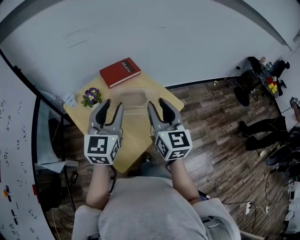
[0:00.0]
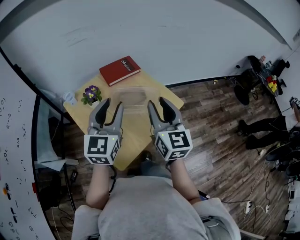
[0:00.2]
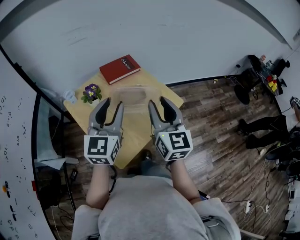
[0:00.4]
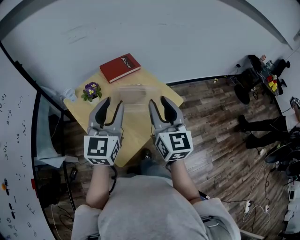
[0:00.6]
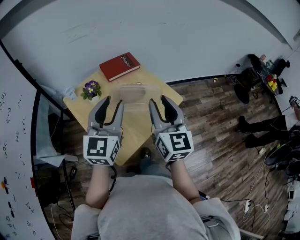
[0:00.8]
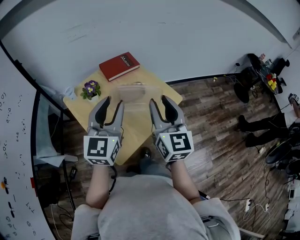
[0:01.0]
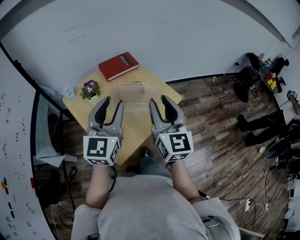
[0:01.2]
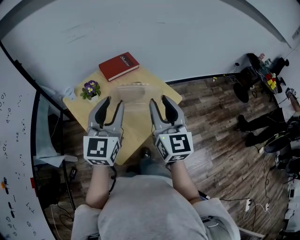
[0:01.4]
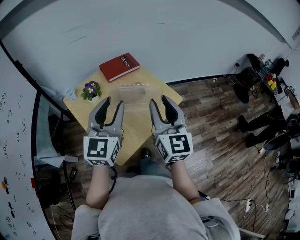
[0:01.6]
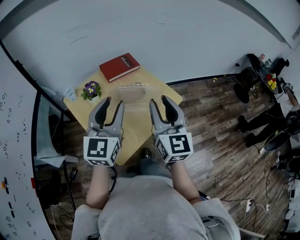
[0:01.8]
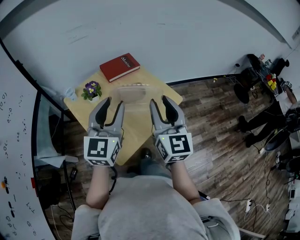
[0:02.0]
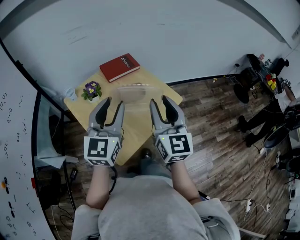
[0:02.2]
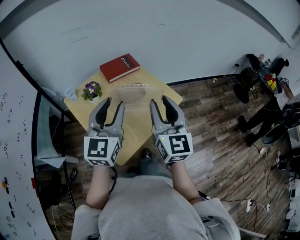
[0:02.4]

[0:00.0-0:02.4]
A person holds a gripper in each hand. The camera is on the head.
0:00.0 to 0:01.2: The grippers stay close to where they were, moving slightly.
0:01.2 to 0:02.4: The two grippers keep their place.

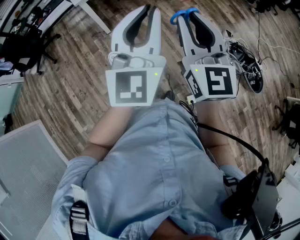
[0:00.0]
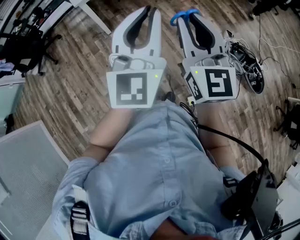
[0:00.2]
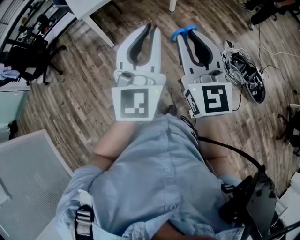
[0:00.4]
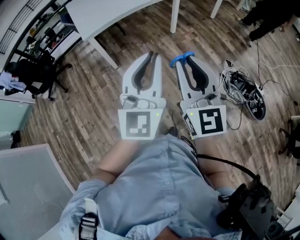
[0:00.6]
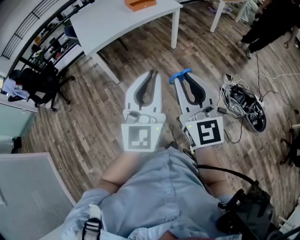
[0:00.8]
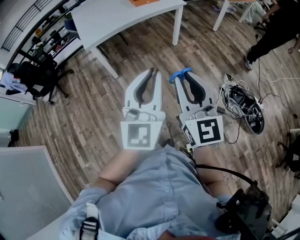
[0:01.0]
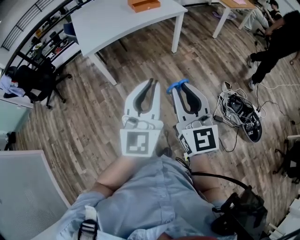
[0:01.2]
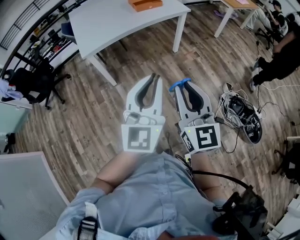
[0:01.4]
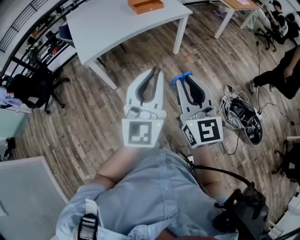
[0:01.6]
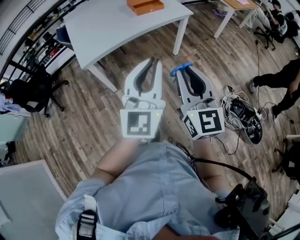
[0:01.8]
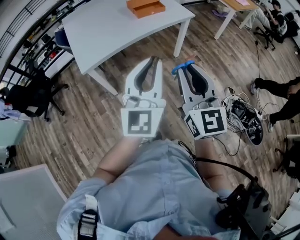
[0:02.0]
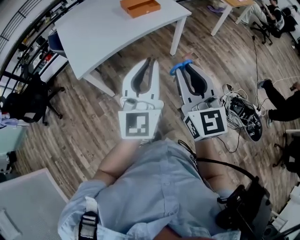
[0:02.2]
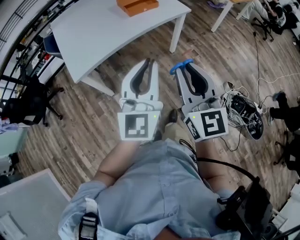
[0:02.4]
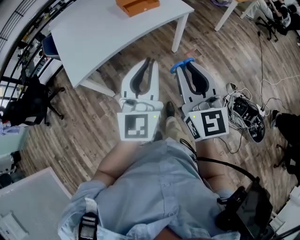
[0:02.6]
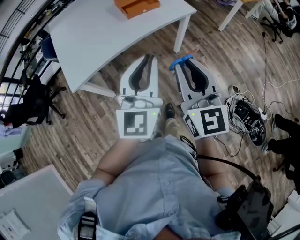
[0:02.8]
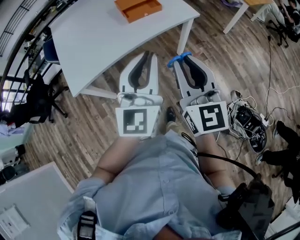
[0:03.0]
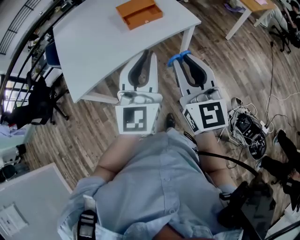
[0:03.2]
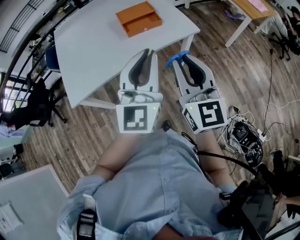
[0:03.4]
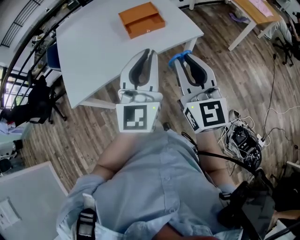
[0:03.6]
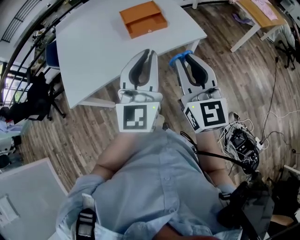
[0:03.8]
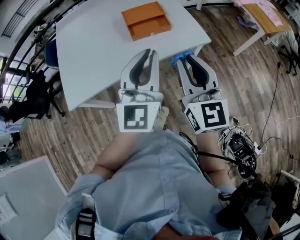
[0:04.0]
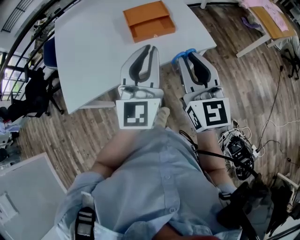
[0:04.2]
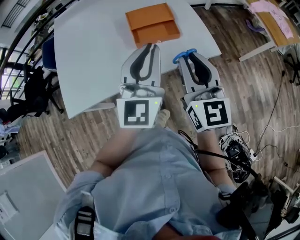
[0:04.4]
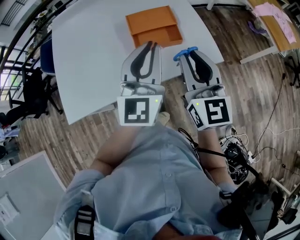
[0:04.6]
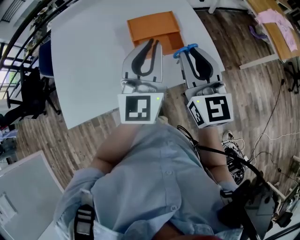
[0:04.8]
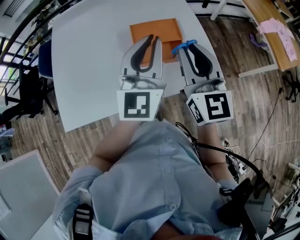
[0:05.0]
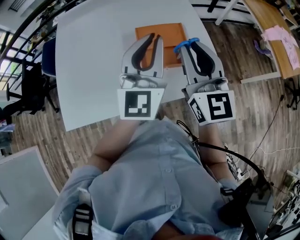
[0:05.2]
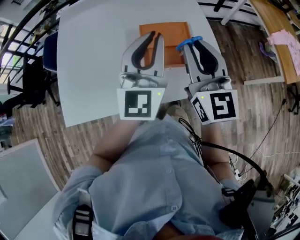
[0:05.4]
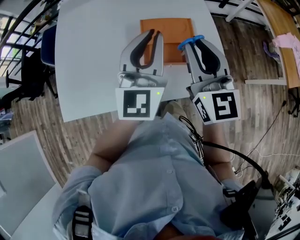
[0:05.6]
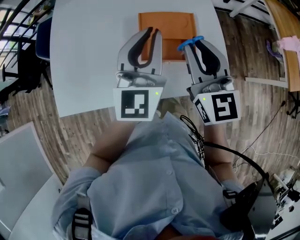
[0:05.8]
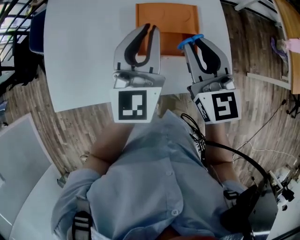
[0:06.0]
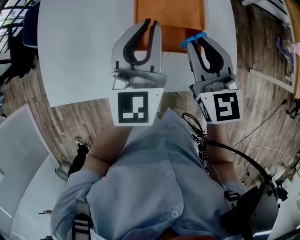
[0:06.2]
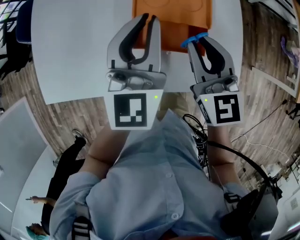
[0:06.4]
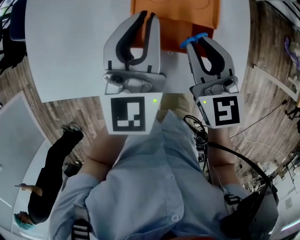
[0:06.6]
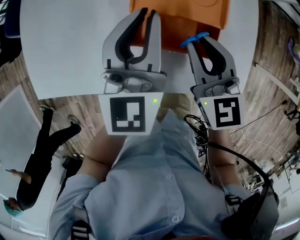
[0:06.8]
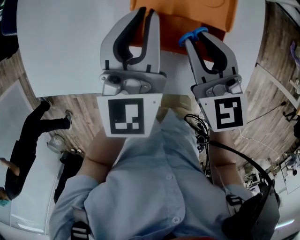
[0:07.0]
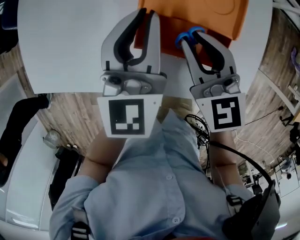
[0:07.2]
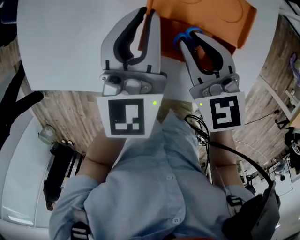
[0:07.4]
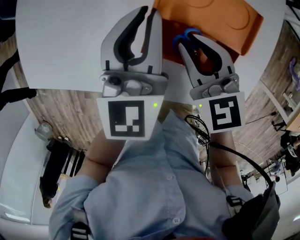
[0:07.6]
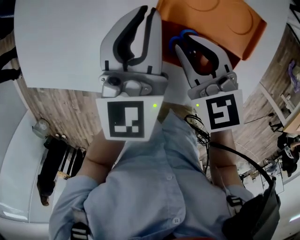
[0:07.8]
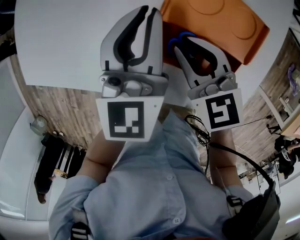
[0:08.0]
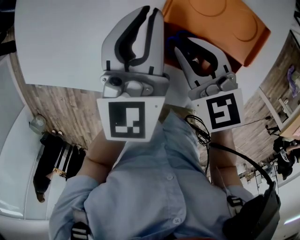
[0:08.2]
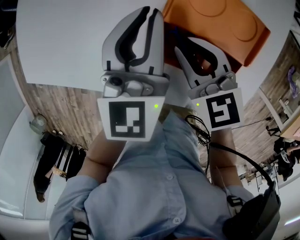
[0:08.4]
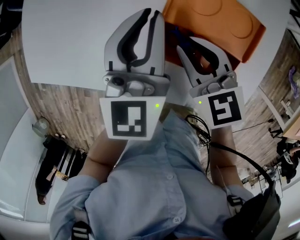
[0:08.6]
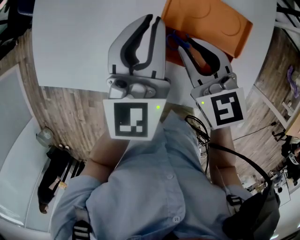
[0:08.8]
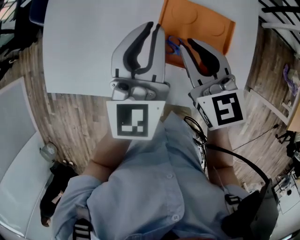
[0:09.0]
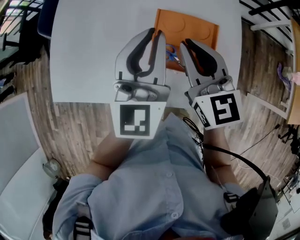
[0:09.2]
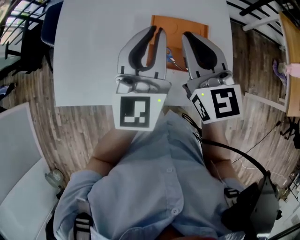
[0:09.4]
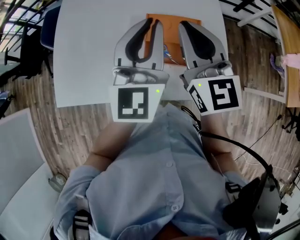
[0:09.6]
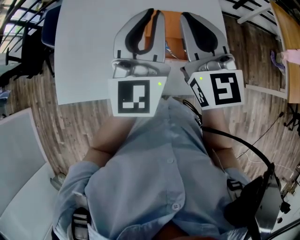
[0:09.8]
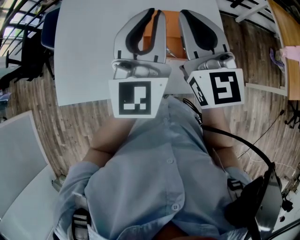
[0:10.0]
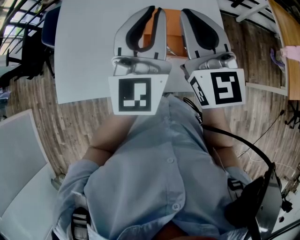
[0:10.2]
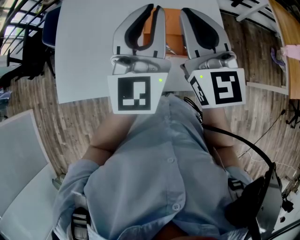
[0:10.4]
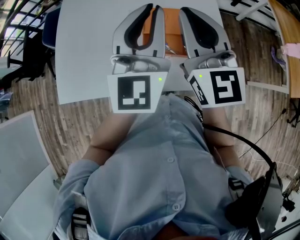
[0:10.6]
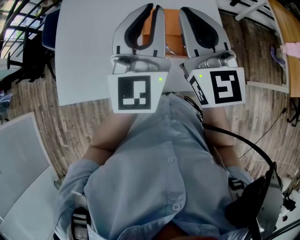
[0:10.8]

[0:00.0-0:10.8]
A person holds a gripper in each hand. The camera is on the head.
0:00.0 to 0:01.6: The two grippers go some 20 cm forward.
0:01.6 to 0:03.0: The grippers both shift forward by approximately 30 cm.
0:03.0 to 0:04.6: Both grippers travel together forward, about 35 cm.
0:04.6 to 0:06.2: The grippers both shift forward and downward by approximately 20 cm. The right gripper turns by roughly 20 degrees.
0:06.2 to 0:07.8: The right gripper travels downward, to the left and forward by about 20 cm, and turns by approximately 40 degrees; the left gripper is displaced downward and forward by some 15 cm, and turns by approximately 20 degrees.
0:07.8 to 0:09.2: The two grippers go roughly 20 cm upward. The right gripper rotates about 30 degrees.
0:09.2 to 0:10.8: The left gripper is displaced upward and to the right by about 10 cm. Meanwhile the right gripper is displaced upward by some 10 cm, and rotates roughly 20 degrees.

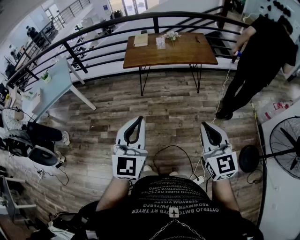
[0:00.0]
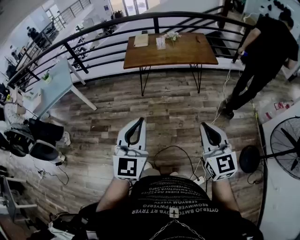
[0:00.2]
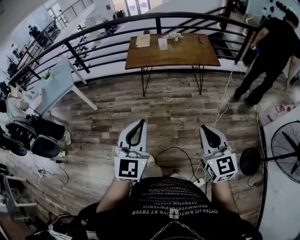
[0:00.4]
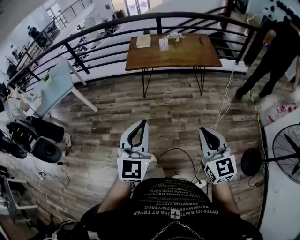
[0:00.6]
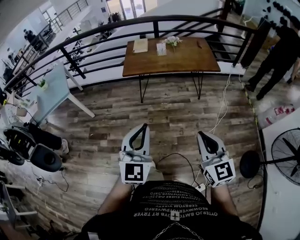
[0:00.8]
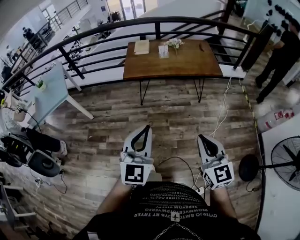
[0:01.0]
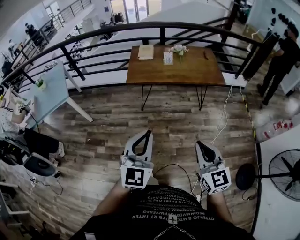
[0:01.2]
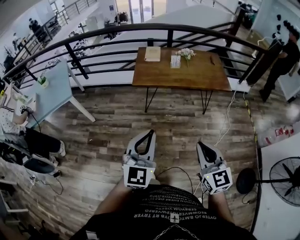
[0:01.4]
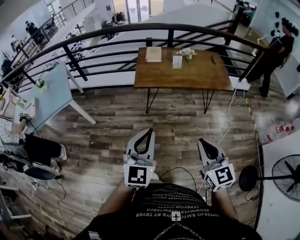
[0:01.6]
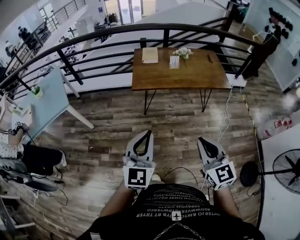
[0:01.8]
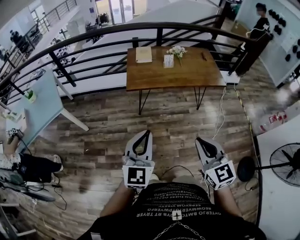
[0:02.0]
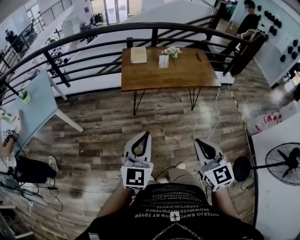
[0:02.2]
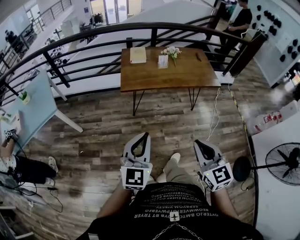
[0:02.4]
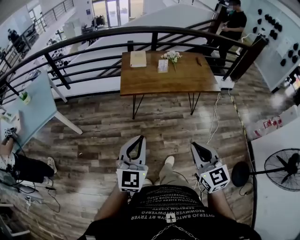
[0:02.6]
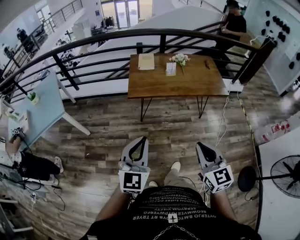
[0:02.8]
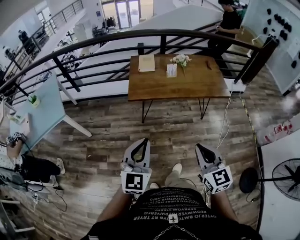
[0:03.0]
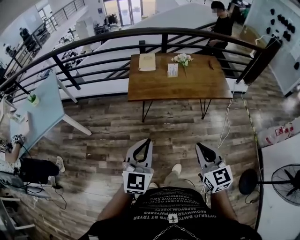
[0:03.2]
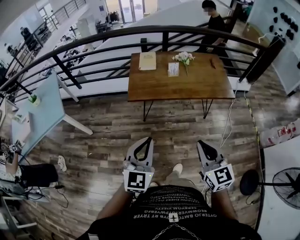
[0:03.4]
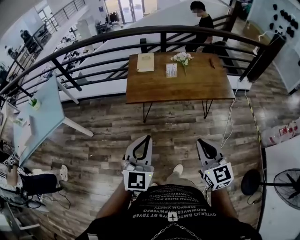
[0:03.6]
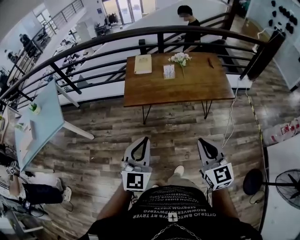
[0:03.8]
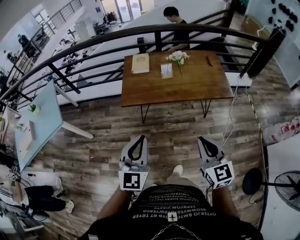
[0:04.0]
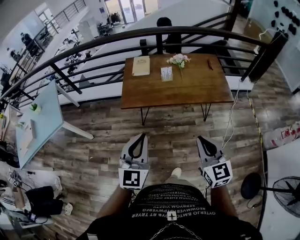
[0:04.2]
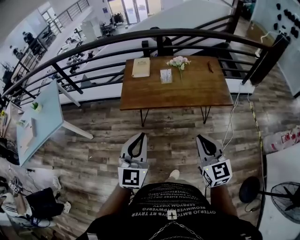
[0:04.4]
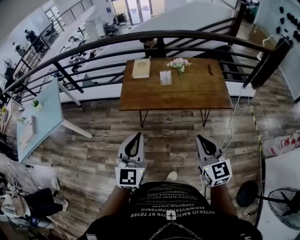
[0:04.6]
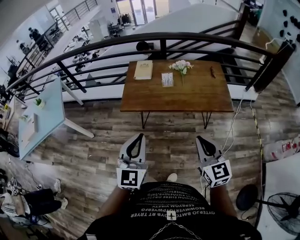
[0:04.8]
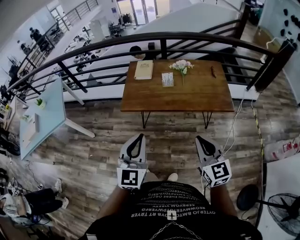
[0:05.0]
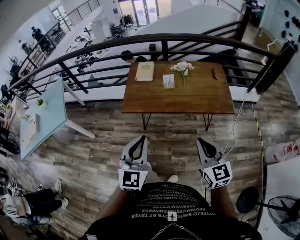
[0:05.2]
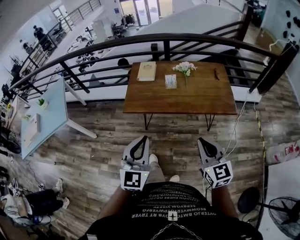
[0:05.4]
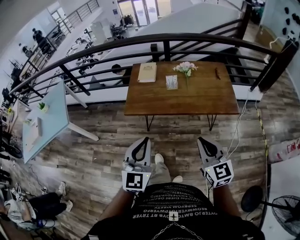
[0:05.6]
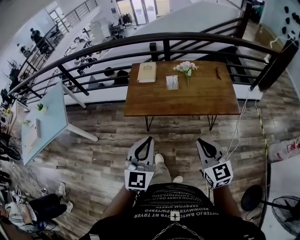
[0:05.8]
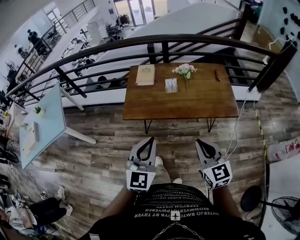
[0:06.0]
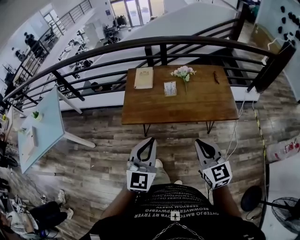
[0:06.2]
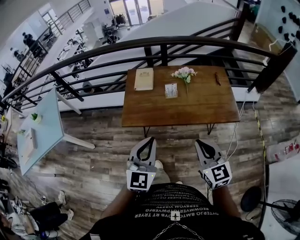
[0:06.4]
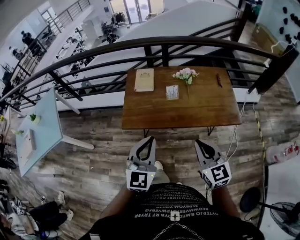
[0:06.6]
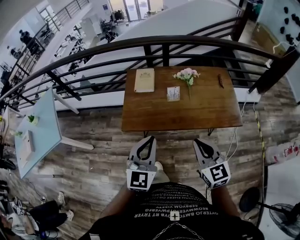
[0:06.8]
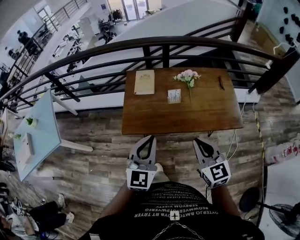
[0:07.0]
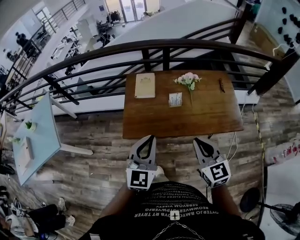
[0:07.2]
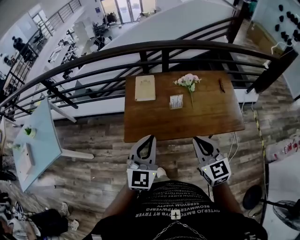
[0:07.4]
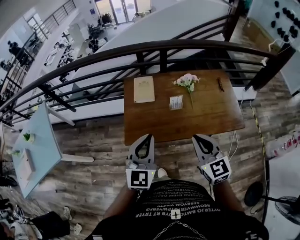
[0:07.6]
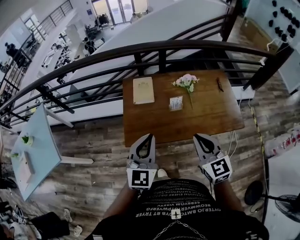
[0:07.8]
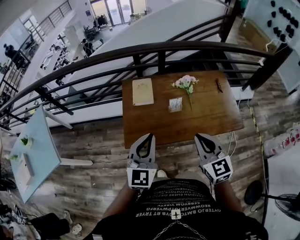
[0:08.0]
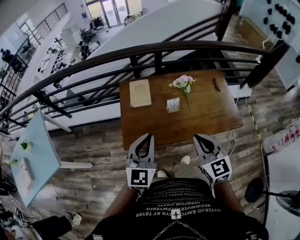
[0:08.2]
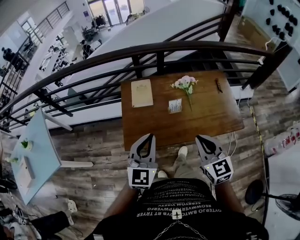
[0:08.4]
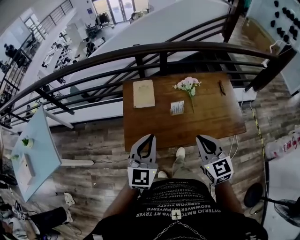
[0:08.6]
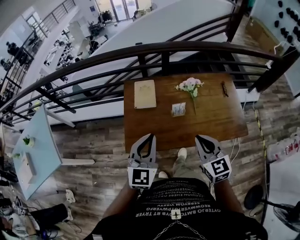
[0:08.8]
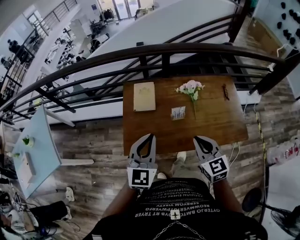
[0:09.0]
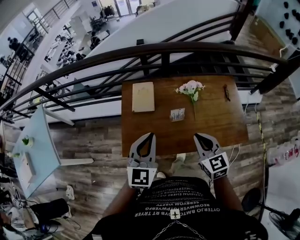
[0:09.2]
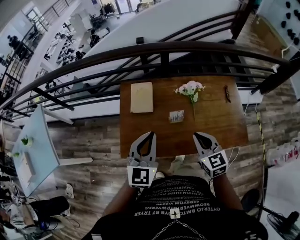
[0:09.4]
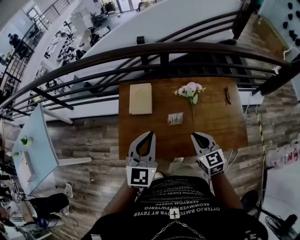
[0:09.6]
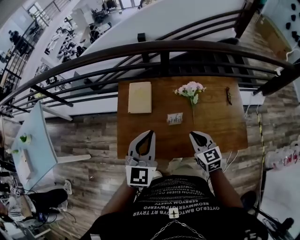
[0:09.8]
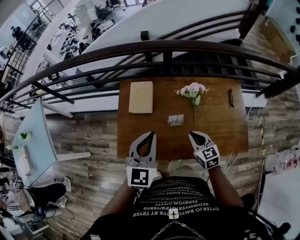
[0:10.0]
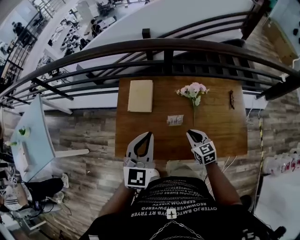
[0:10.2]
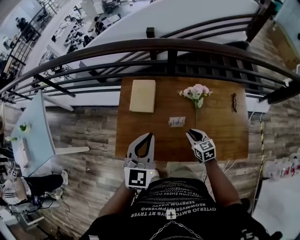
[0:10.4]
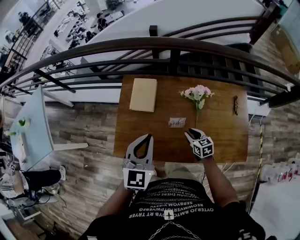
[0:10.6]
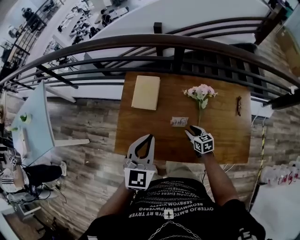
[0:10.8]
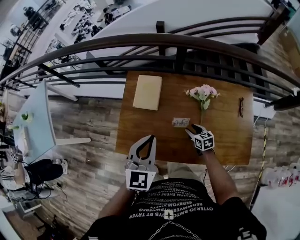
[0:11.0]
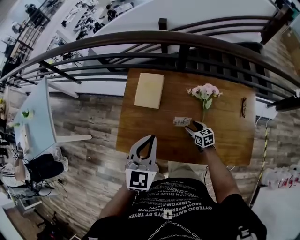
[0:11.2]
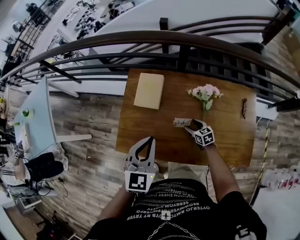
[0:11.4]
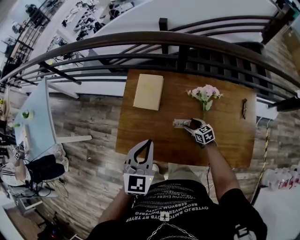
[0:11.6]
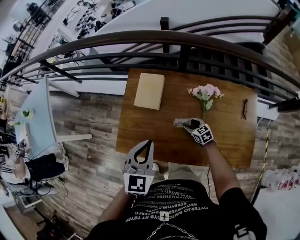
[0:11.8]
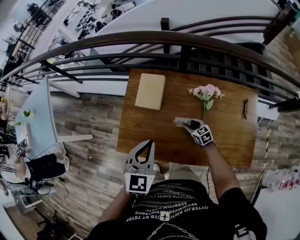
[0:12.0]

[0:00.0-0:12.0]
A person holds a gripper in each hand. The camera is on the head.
0:00.0 to 0:01.6: Both grippers move forward and to the left, some 25 cm.
0:01.6 to 0:03.0: The grippers both shift forward by approximately 5 cm.
0:03.0 to 0:04.4: The two grippers go about 20 cm forward and to the right.
0:04.4 to 0:06.0: The grippers both shift forward by roughly 5 cm.
0:06.0 to 0:07.6: The right gripper travels forward and to the left by about 25 cm, while the left gripper goes roughly 25 cm forward.
0:07.6 to 0:09.0: The right gripper is displaced forward and downward by about 10 cm. Meanwhile the left gripper goes roughly 10 cm forward.
0:09.0 to 0:10.4: The right gripper is displaced downward and forward by some 25 cm, and rotates roughly 20 degrees; the left gripper travels forward and to the right by about 10 cm.
0:10.4 to 0:12.0: The right gripper moves downward and forward, about 15 cm, and opens.
